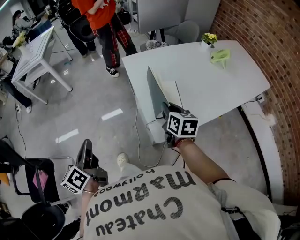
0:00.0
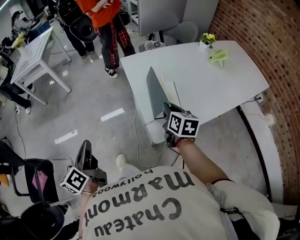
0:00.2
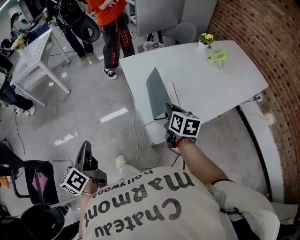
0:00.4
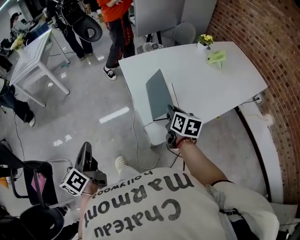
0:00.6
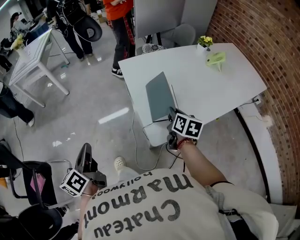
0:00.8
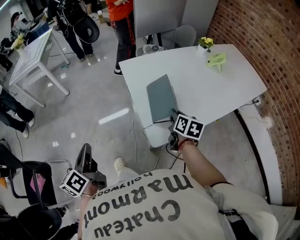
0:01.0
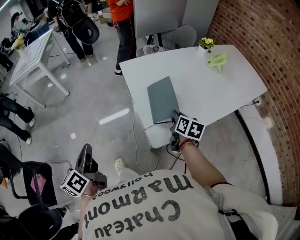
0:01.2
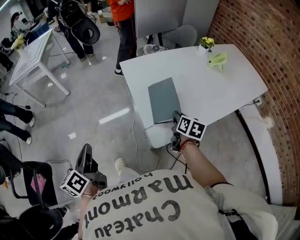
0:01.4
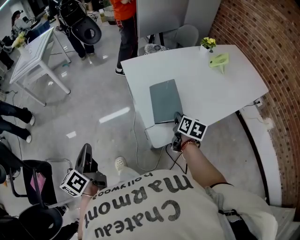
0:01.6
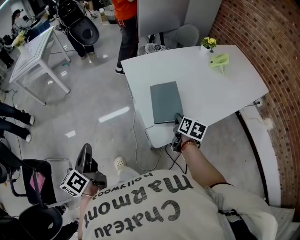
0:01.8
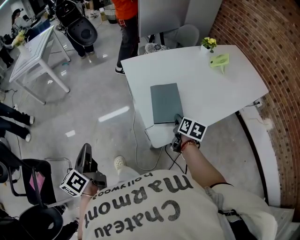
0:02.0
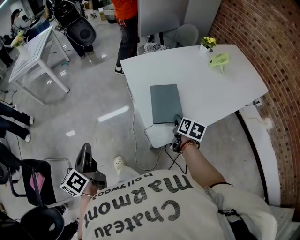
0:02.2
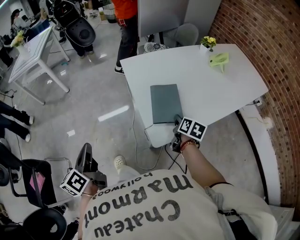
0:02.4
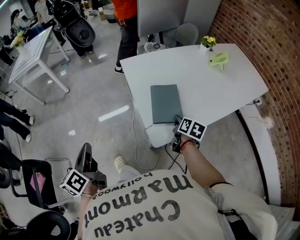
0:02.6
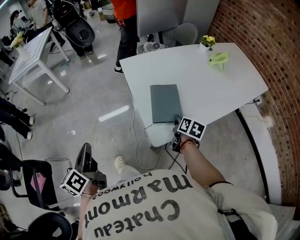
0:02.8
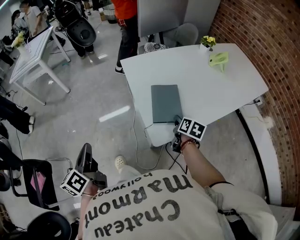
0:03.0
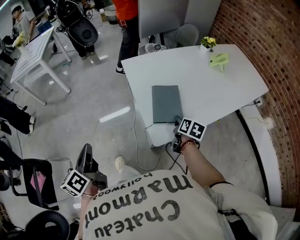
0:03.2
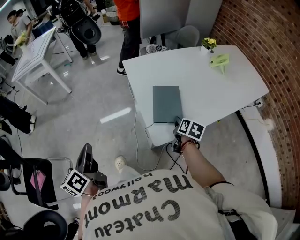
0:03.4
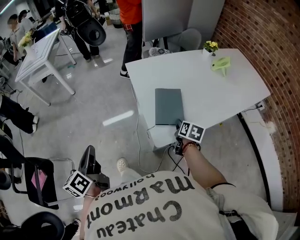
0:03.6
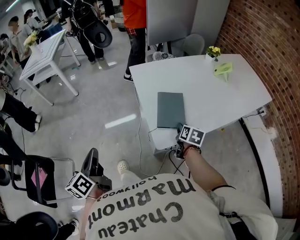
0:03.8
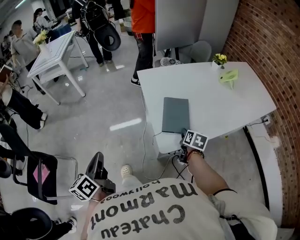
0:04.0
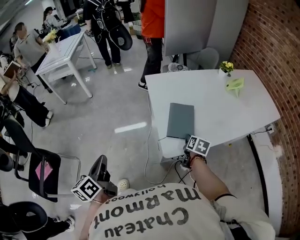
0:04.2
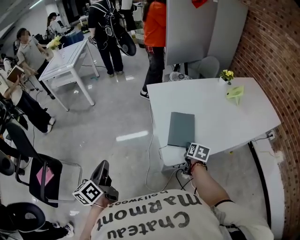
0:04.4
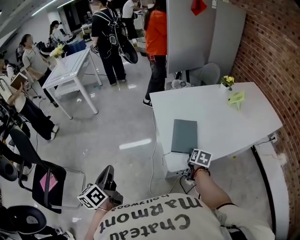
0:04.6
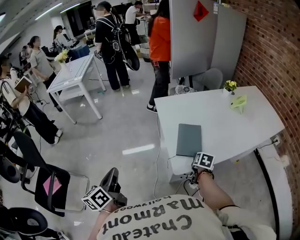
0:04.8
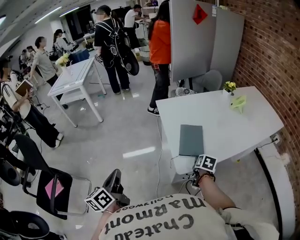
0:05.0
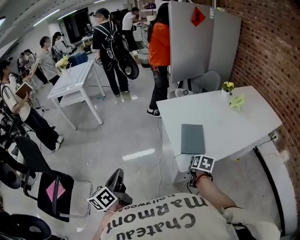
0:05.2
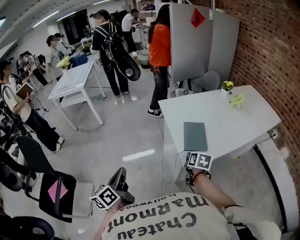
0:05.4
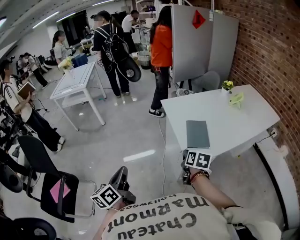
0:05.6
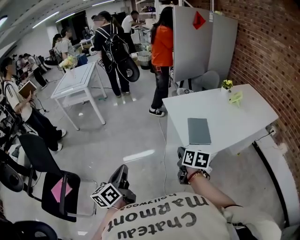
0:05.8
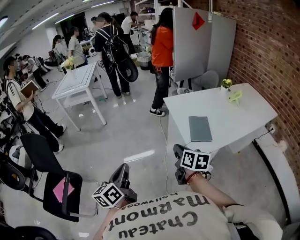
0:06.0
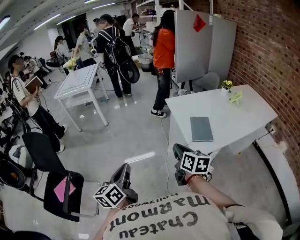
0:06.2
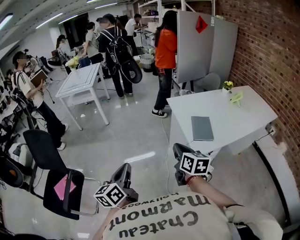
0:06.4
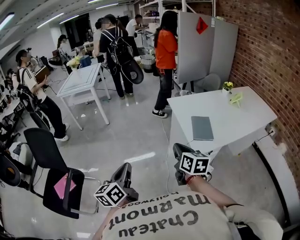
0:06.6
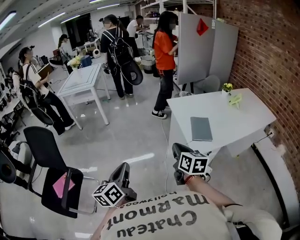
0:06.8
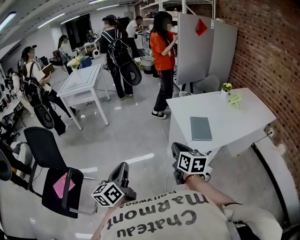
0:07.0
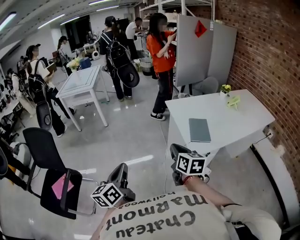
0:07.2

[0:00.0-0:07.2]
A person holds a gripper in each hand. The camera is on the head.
0:00.0 to 0:01.4: The right gripper is displaced to the right and downward by about 10 cm.
0:01.4 to 0:02.8: The grippers move only a little.
0:02.8 to 0:04.4: The left gripper is displaced backward by some 5 cm.
0:04.4 to 0:05.8: The left gripper travels to the left, backward and upward by some 10 cm, while the right gripper travels to the left, upward and backward by approximately 30 cm, and closes up.
0:05.8 to 0:07.2: The left gripper travels backward by some 5 cm. The right gripper shifts roughly 15 cm to the left, upward and backward.

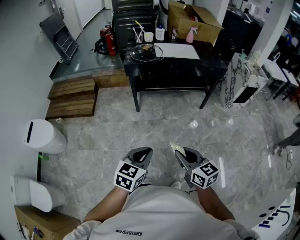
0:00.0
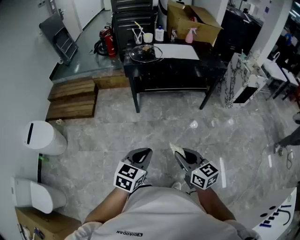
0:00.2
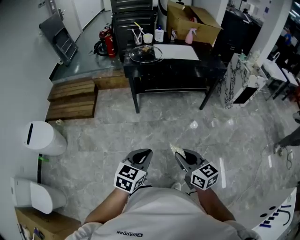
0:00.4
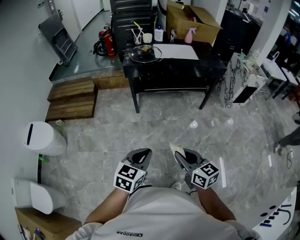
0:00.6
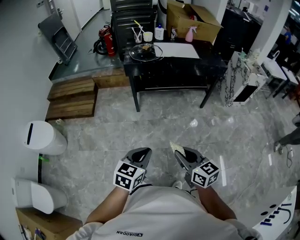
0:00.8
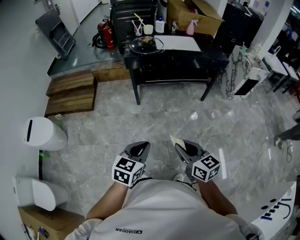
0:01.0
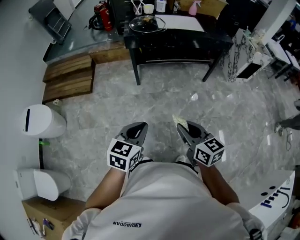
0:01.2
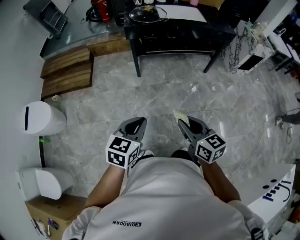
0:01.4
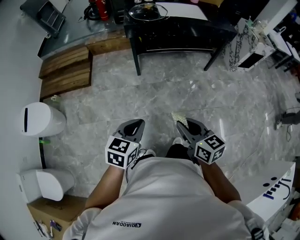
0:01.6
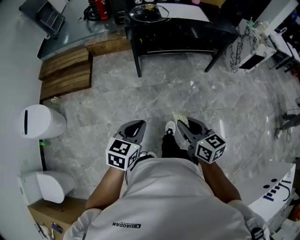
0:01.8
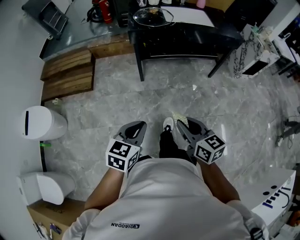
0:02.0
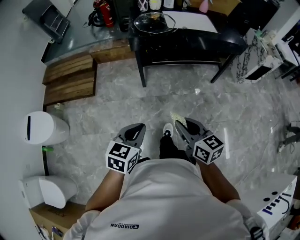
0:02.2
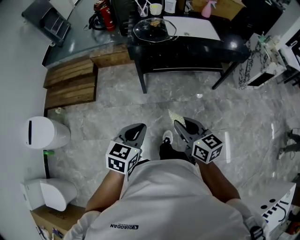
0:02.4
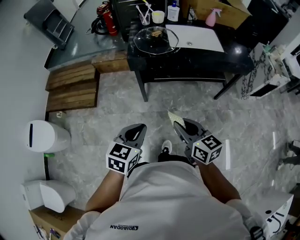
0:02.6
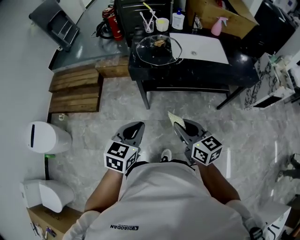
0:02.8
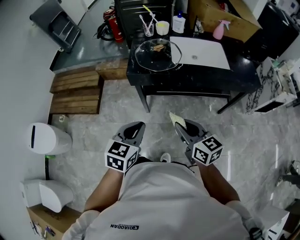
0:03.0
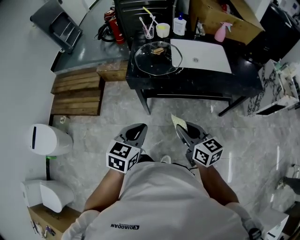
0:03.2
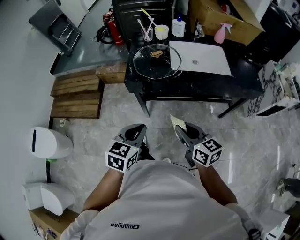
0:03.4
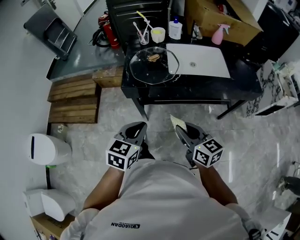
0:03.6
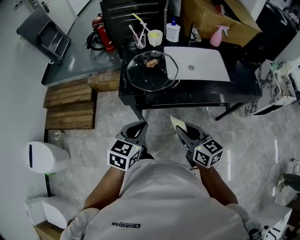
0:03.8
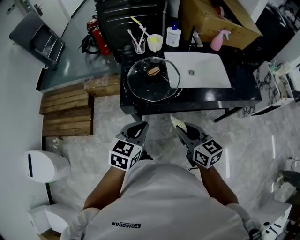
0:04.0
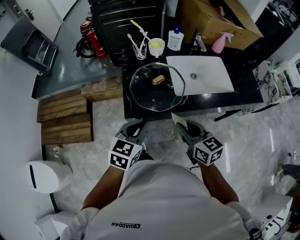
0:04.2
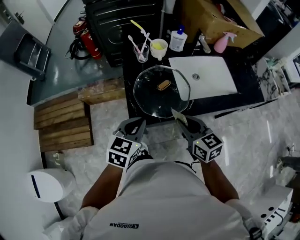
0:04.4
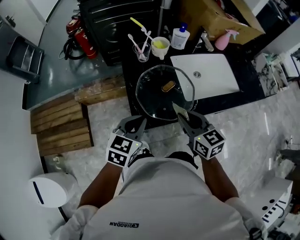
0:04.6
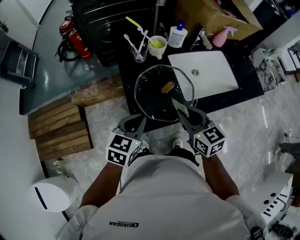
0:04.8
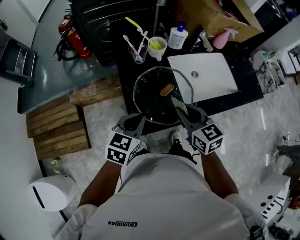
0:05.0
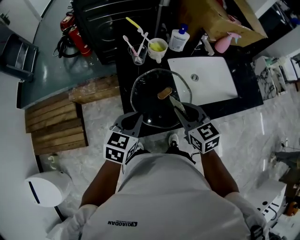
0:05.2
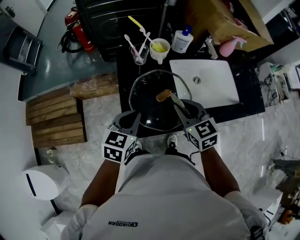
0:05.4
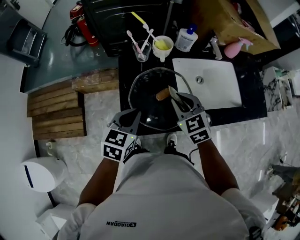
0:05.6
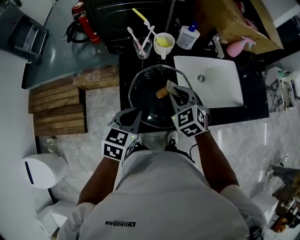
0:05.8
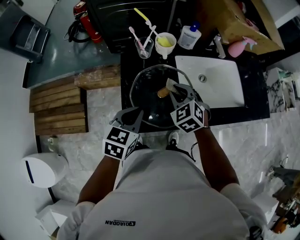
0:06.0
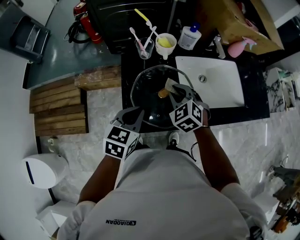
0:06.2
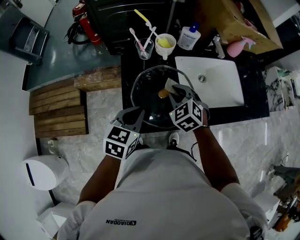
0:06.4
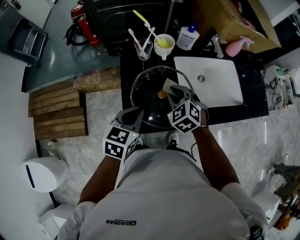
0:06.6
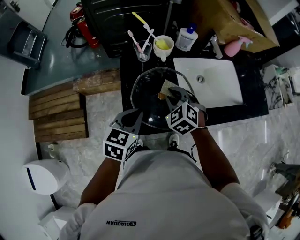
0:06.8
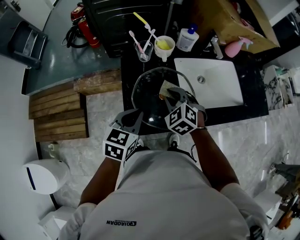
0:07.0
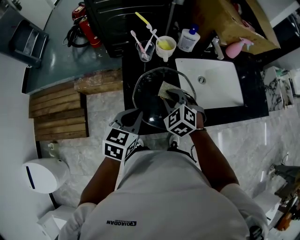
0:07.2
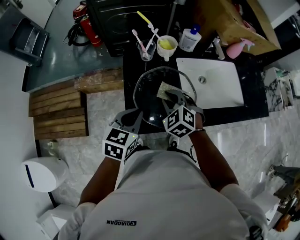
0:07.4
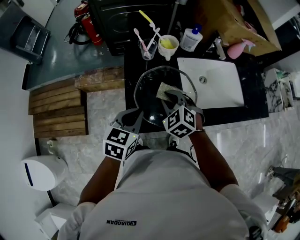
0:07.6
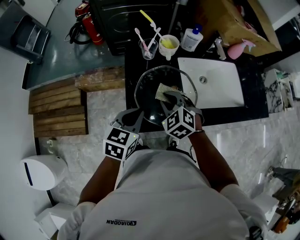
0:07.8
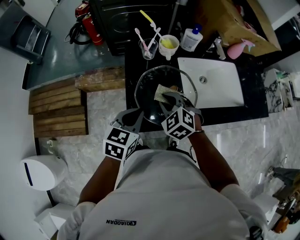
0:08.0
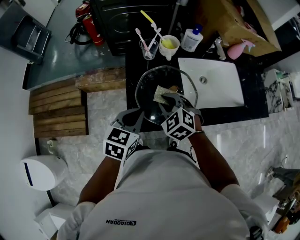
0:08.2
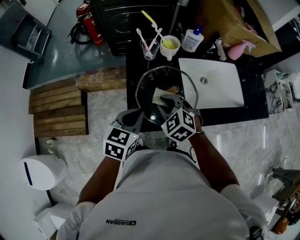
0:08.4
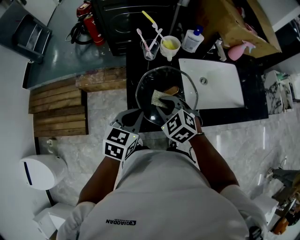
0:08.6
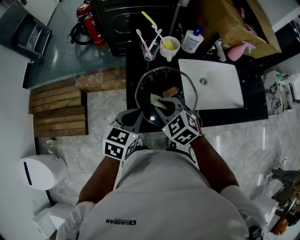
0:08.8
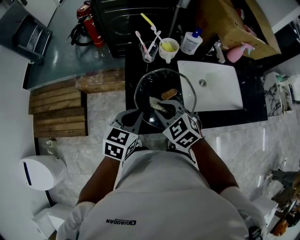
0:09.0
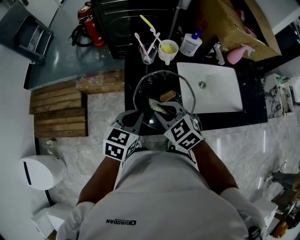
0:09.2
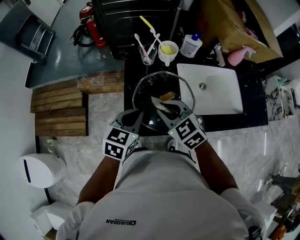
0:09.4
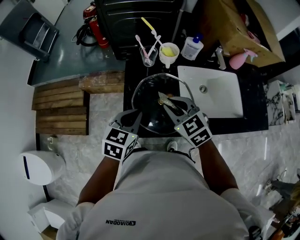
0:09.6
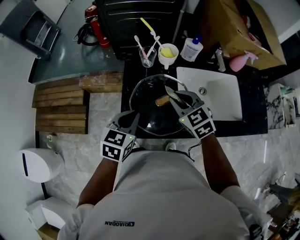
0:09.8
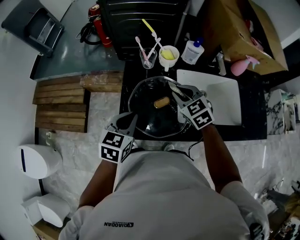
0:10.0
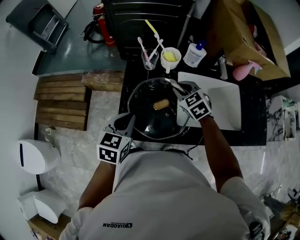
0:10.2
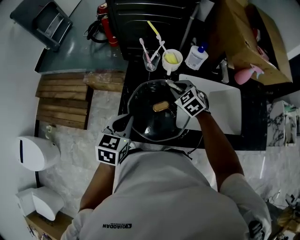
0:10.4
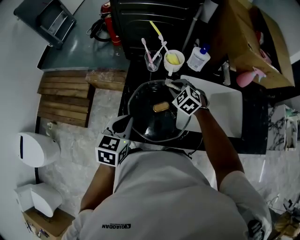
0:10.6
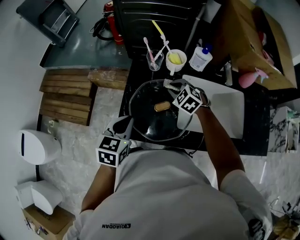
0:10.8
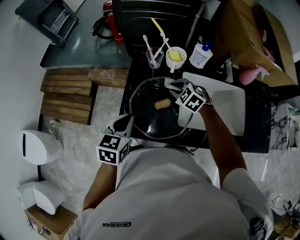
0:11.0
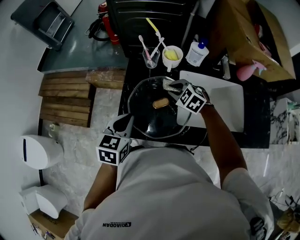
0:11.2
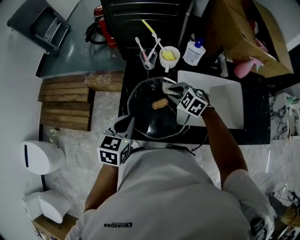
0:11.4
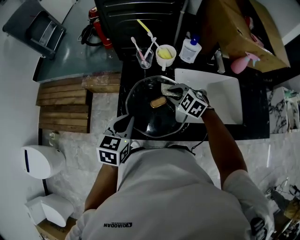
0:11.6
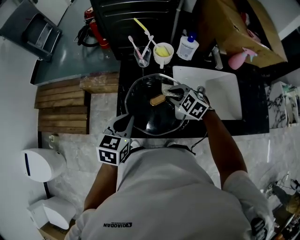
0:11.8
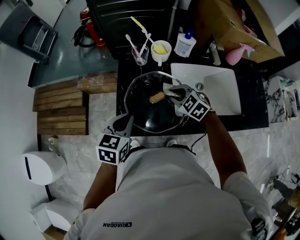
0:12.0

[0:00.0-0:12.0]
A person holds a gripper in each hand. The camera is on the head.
0:00.0 to 0:01.6: The grippers both shift to the left by some 10 cm.
0:01.6 to 0:03.0: Both grippers are carried forward, some 40 cm.
0:03.0 to 0:04.4: The grippers both shift forward by roughly 35 cm.
0:04.4 to 0:06.0: The right gripper travels forward by roughly 20 cm, and rolls counterclockwise, seen from behind, by approximately 40 degrees; the left gripper heads forward, covering roughly 10 cm.
0:06.0 to 0:07.6: The right gripper goes roughly 5 cm to the left.
0:07.6 to 0:09.0: The right gripper changes place by roughly 5 cm.
0:09.0 to 0:10.4: The right gripper heads forward and to the right, covering some 20 cm.
0:10.4 to 0:12.0: The right gripper travels backward by about 10 cm.

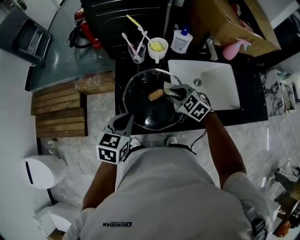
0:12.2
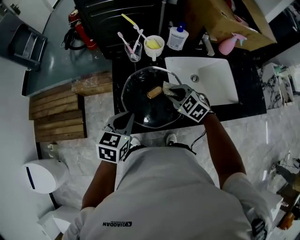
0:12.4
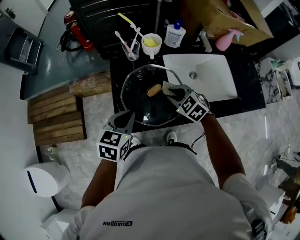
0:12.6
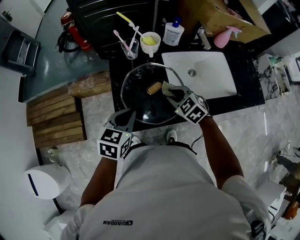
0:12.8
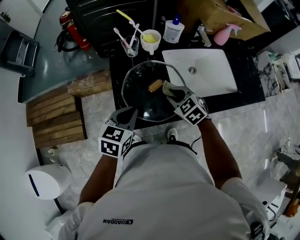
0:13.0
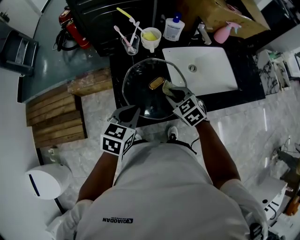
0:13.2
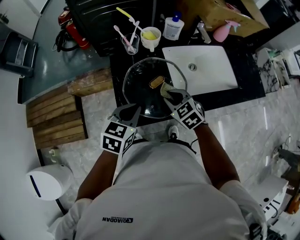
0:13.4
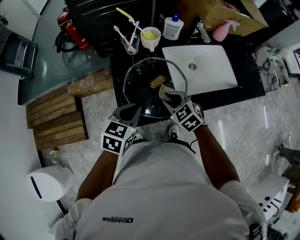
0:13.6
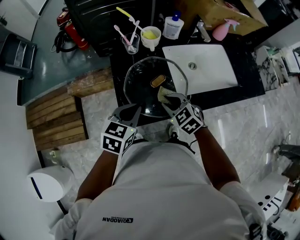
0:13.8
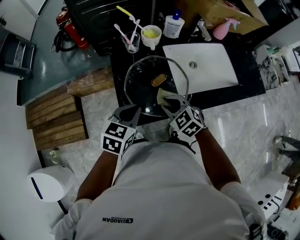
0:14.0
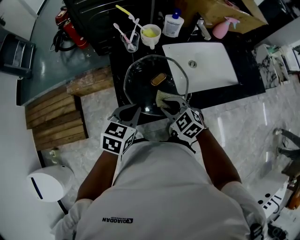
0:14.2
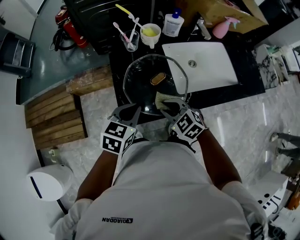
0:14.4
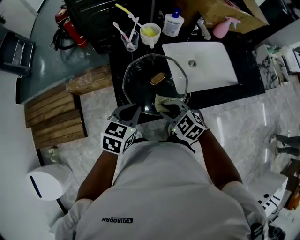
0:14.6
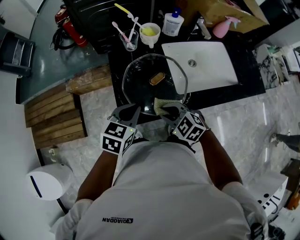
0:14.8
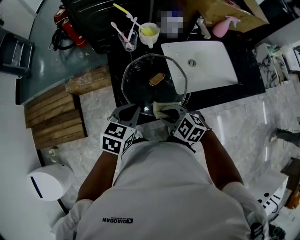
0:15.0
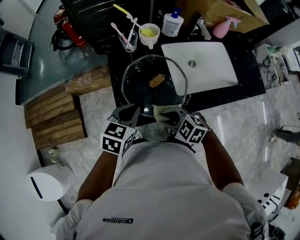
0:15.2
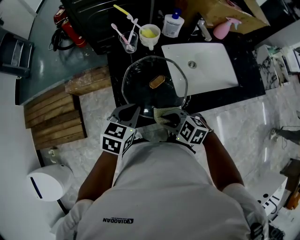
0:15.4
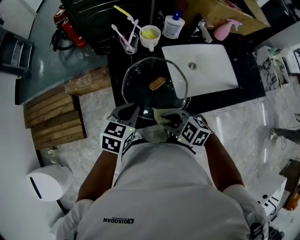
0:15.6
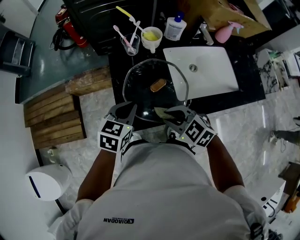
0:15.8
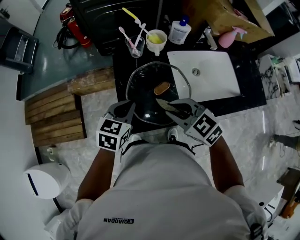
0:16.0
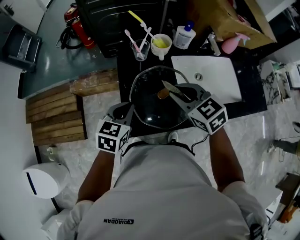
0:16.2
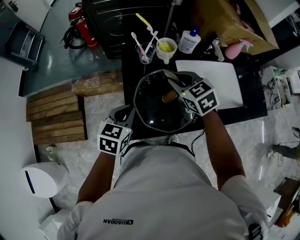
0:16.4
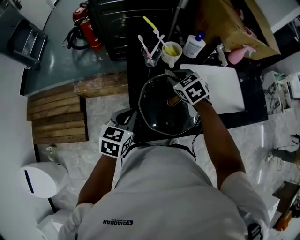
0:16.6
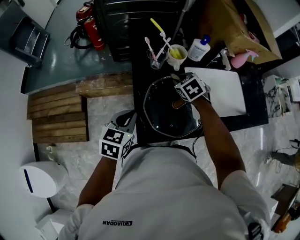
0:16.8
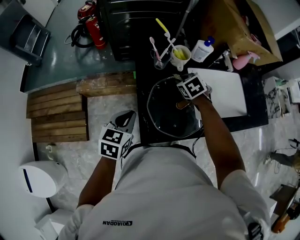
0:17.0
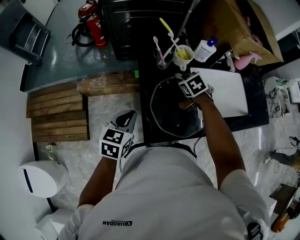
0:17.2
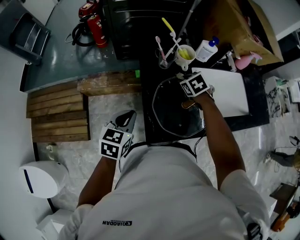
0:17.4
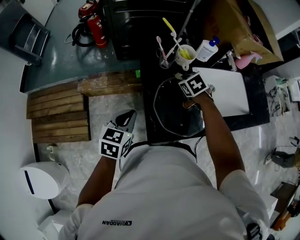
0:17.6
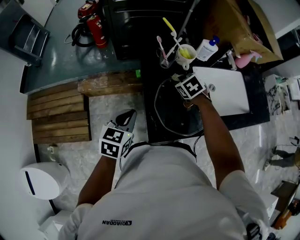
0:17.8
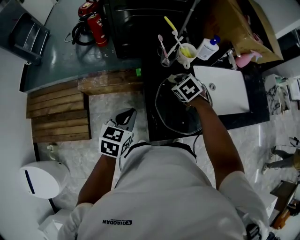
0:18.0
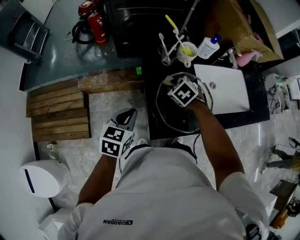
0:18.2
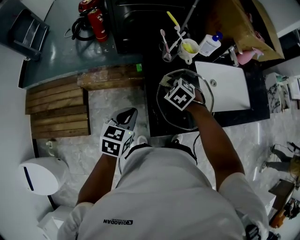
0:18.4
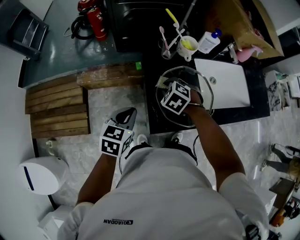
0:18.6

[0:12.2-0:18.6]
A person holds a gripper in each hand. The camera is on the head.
0:12.2 to 0:13.8: The right gripper heads backward, covering approximately 10 cm.
0:13.8 to 0:15.4: The right gripper moves backward, roughly 10 cm, and swivels some 20 degrees.
0:15.4 to 0:17.0: The left gripper goes about 15 cm to the left and forward. The right gripper shifts about 30 cm forward, and turns by roughly 40 degrees.
0:17.0 to 0:18.6: The left gripper changes place by some 5 cm. The right gripper heads to the left and backward, covering some 15 cm, and rotates roughly 30 degrees.
